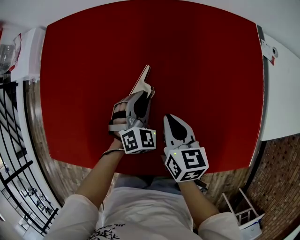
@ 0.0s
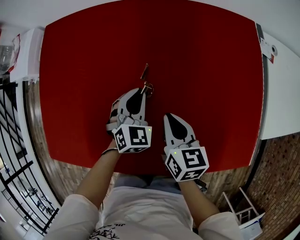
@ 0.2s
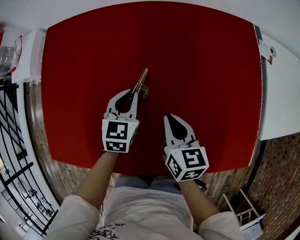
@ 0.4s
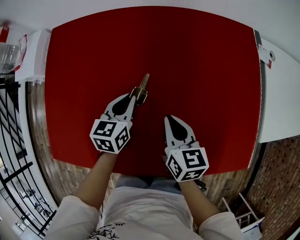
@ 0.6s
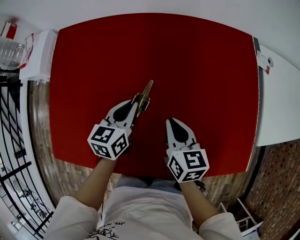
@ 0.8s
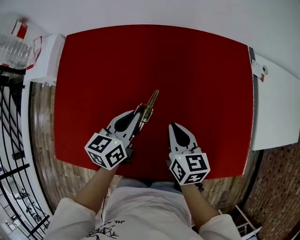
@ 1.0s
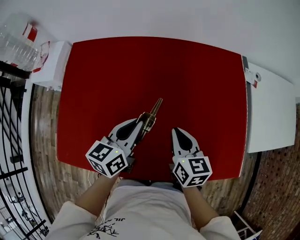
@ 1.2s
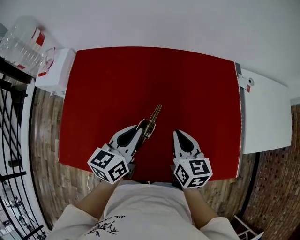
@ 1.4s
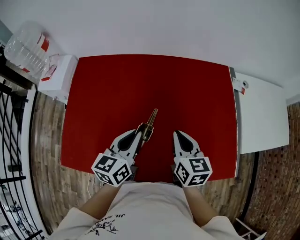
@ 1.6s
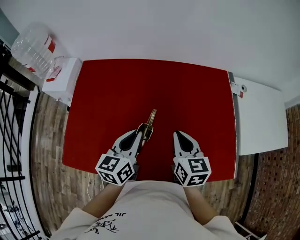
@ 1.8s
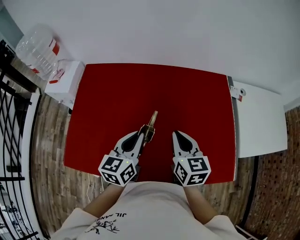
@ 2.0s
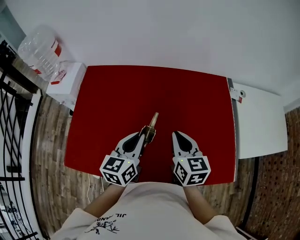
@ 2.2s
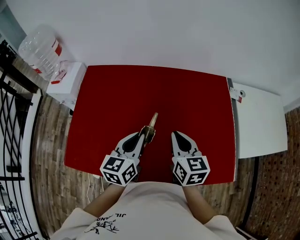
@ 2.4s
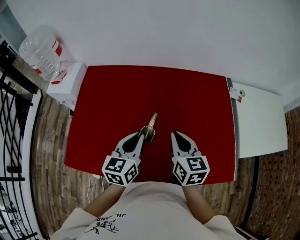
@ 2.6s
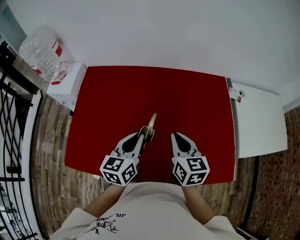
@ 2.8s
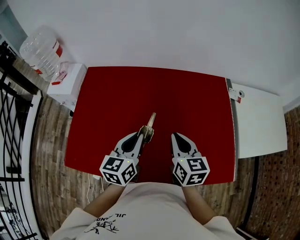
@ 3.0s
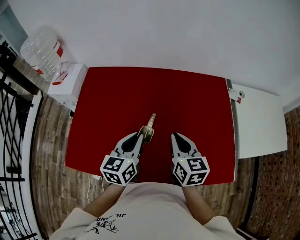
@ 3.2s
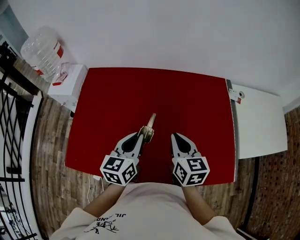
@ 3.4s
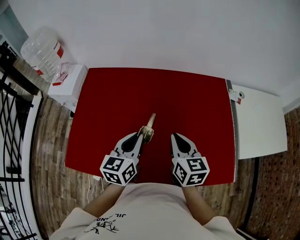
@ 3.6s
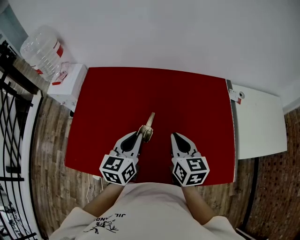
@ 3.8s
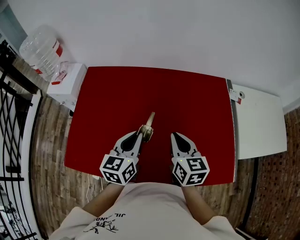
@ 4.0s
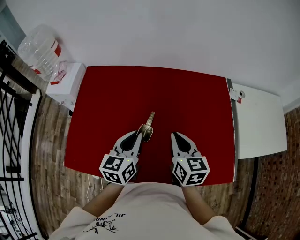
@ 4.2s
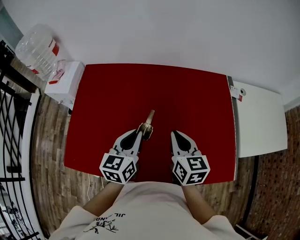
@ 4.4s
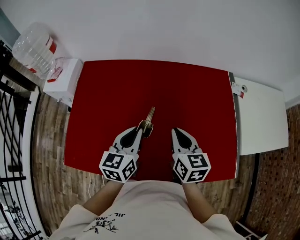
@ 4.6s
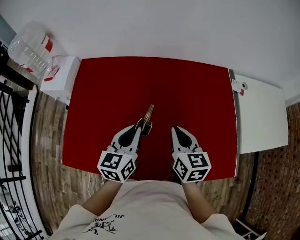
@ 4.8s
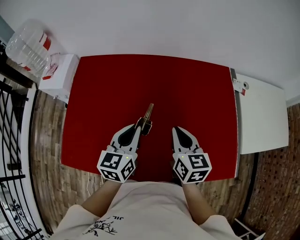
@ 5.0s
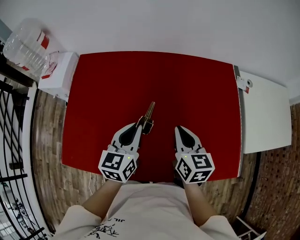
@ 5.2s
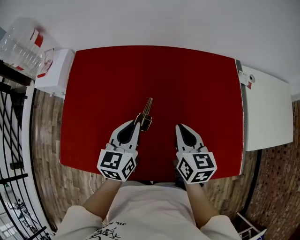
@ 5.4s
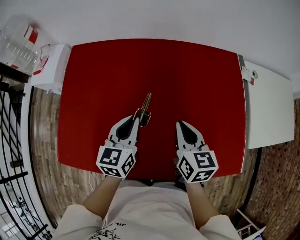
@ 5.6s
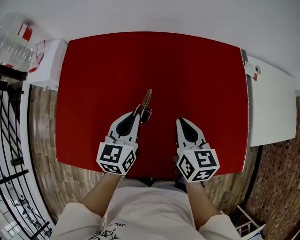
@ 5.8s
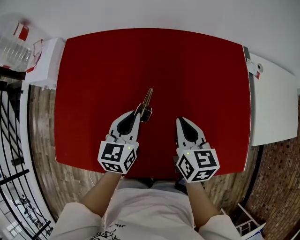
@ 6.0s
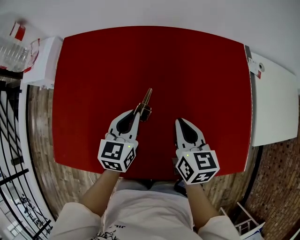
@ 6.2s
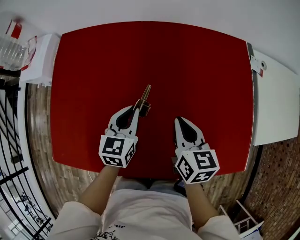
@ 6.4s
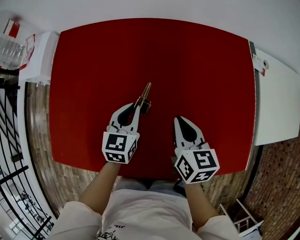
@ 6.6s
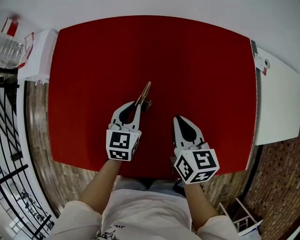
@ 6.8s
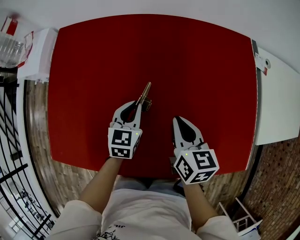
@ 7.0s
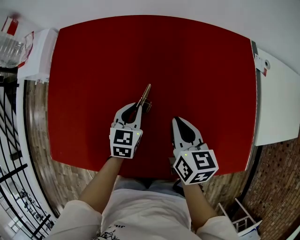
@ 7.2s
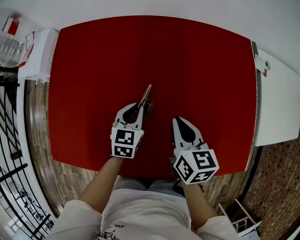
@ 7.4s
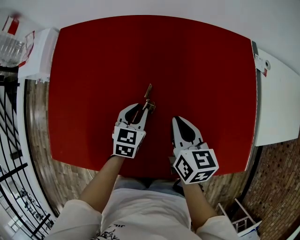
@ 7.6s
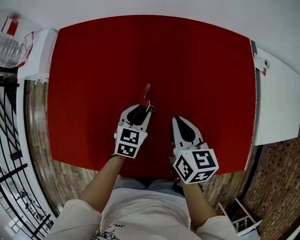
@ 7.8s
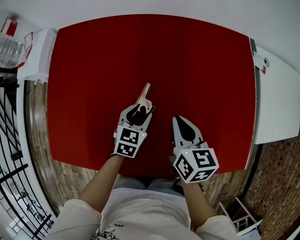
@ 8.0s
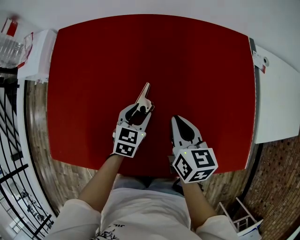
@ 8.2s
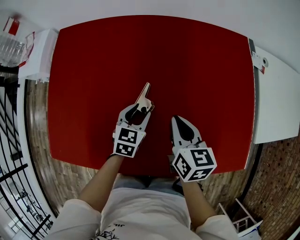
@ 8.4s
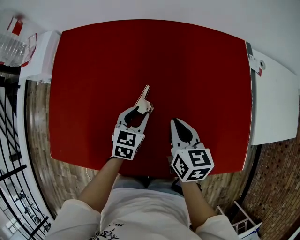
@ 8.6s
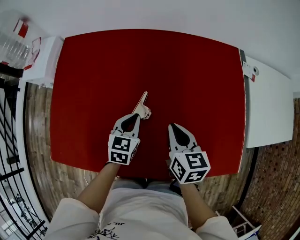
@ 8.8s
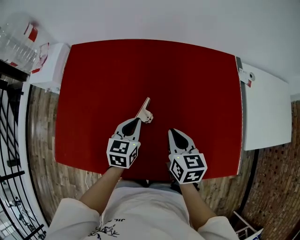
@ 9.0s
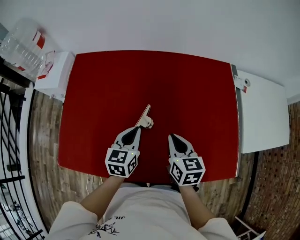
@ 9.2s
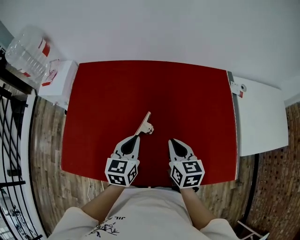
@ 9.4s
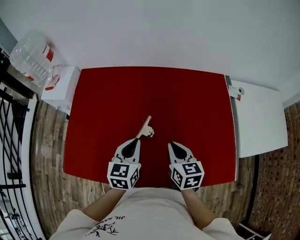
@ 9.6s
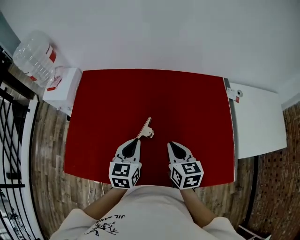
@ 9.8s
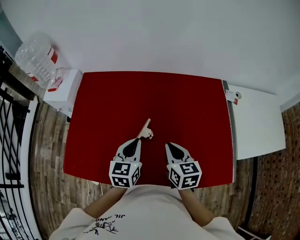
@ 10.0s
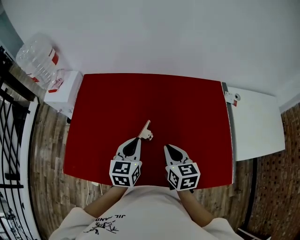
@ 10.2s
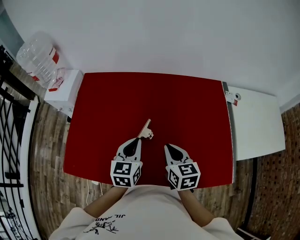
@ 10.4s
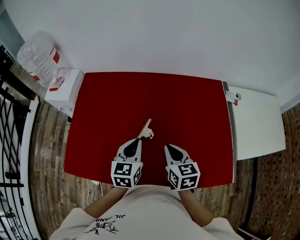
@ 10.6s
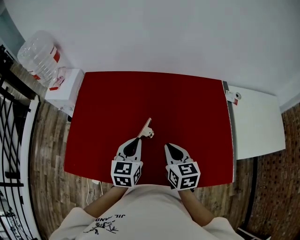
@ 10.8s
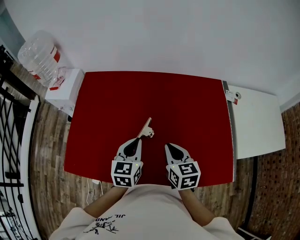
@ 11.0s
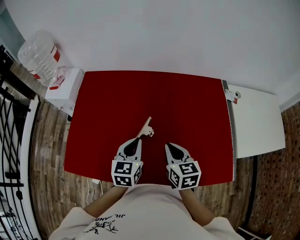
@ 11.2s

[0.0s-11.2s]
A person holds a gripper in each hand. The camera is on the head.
0.0s to 1.6s: The two grippers go approximately 20 cm upward. The left gripper rotates around the line of its fingers by some 60 degrees, counterclockwise from behind.
1.6s to 3.2s: The right gripper moves some 5 cm.
3.2s to 4.8s: The grippers stay close to where they were, moving slightly.
4.8s to 6.4s: The left gripper moves downward and forward, roughly 15 cm, while the right gripper is displaced downward by some 10 cm.
6.4s to 8.0s: The left gripper heads downward, covering some 10 cm, and opens its fingers.
8.0s to 9.6s: The left gripper heads upward, covering roughly 20 cm, rotates about 20 degrees, and closes; the right gripper travels upward and backward by roughly 10 cm.
9.6s to 11.2s: The grippers move only a little.

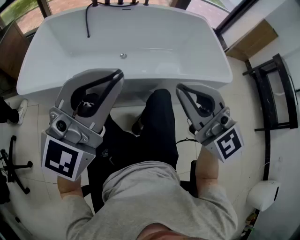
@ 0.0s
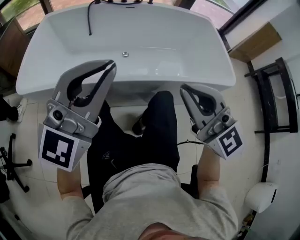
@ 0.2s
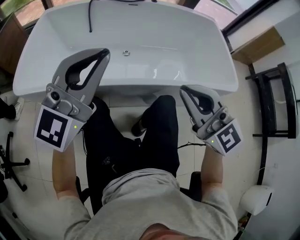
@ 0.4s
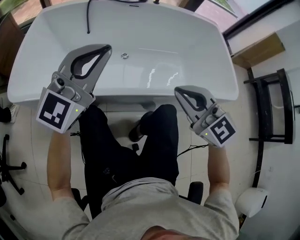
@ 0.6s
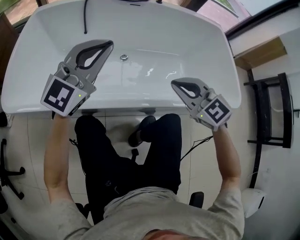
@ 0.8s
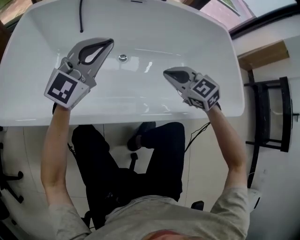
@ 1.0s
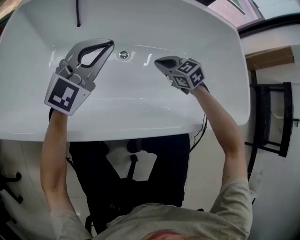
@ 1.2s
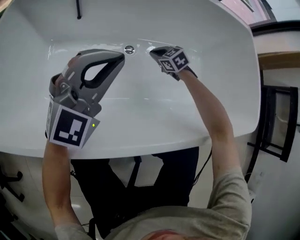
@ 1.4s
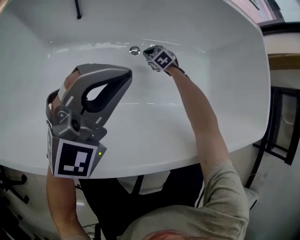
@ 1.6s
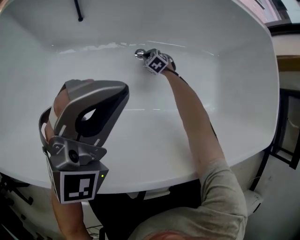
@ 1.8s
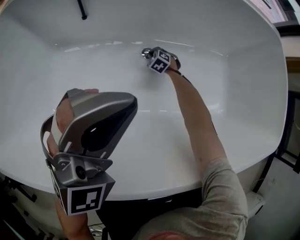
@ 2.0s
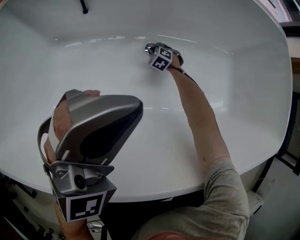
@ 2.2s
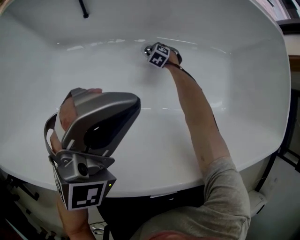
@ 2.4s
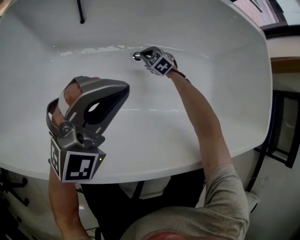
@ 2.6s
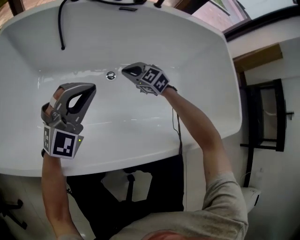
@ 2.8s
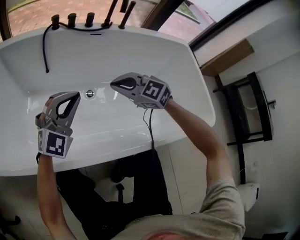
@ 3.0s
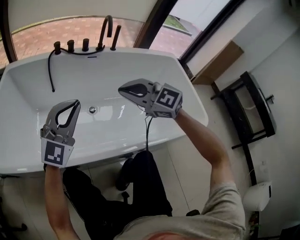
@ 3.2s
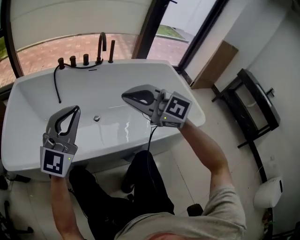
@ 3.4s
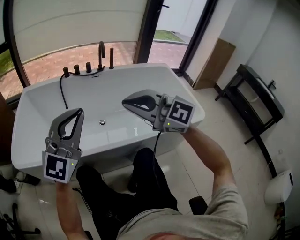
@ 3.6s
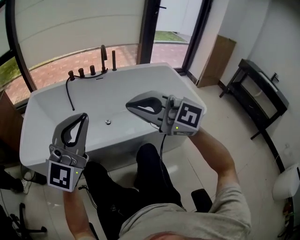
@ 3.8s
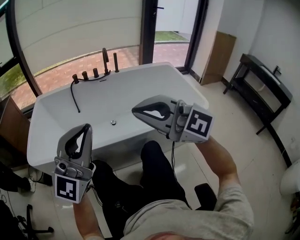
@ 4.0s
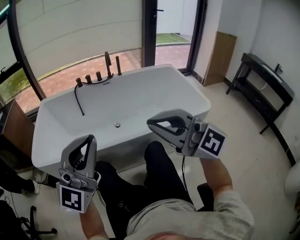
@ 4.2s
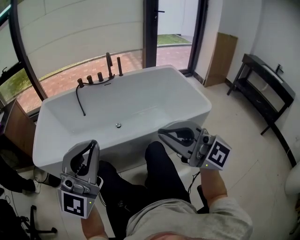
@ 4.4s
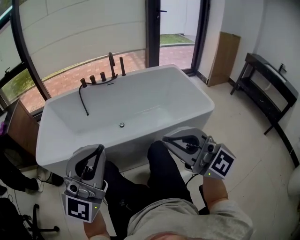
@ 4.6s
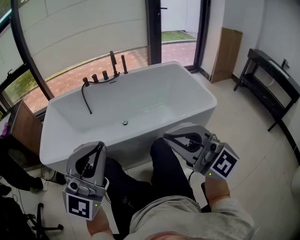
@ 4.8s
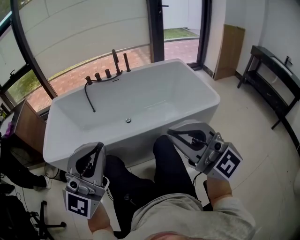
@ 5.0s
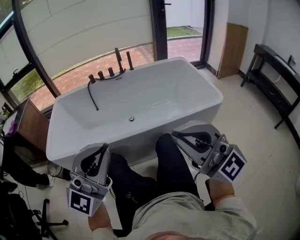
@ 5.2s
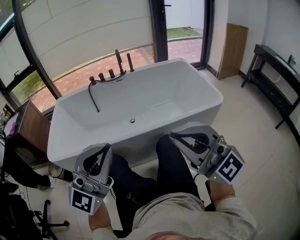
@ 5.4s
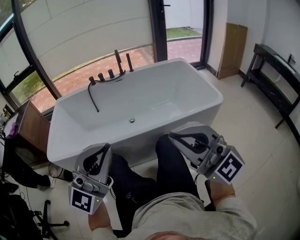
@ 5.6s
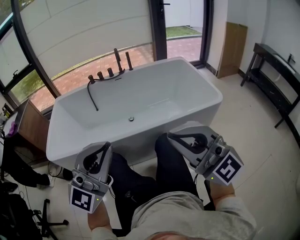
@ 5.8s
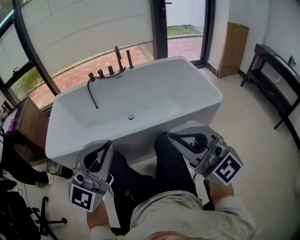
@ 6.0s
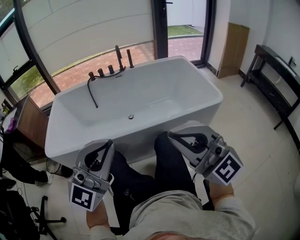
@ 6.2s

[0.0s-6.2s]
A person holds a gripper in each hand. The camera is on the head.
0.0s to 1.6s: The pair of grippers is taken forward, roughly 50 cm. The right gripper heads downward, covering some 70 cm, and tips its fingers downward by roughly 70 degrees. Meanwhile the left gripper goes approximately 30 cm downward, and changes its angle by roughly 20 degrees.
1.6s to 3.2s: The right gripper moves upward and backward, roughly 60 cm, and angles its fingers upward, by some 40 degrees. The left gripper shifts some 15 cm upward and backward.
3.2s to 4.6s: Both grippers move backward and upward, about 50 cm. The left gripper changes its angle by some 20 degrees; the right gripper angles its fingers upward, by some 40 degrees.
4.6s to 6.2s: The grippers stay close to where they were, moving slightly.

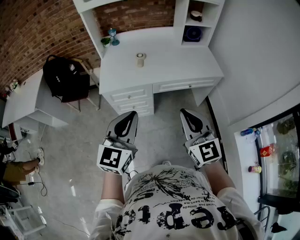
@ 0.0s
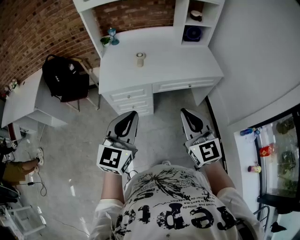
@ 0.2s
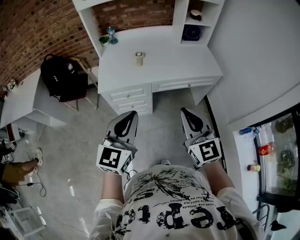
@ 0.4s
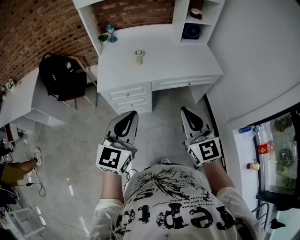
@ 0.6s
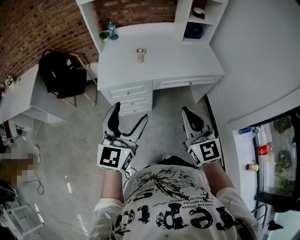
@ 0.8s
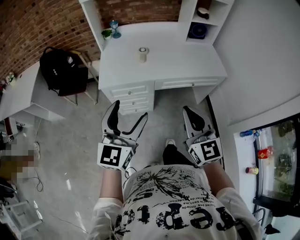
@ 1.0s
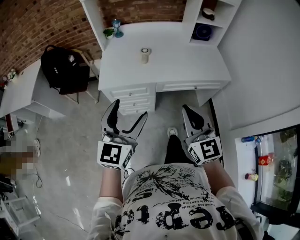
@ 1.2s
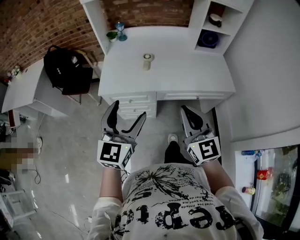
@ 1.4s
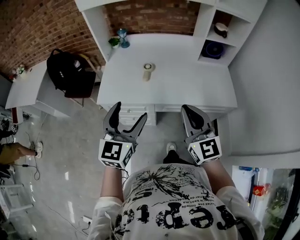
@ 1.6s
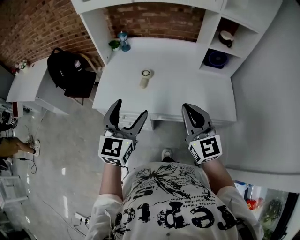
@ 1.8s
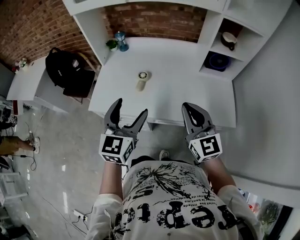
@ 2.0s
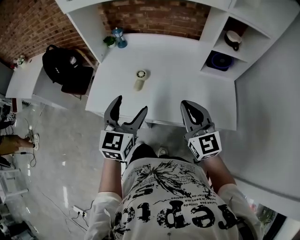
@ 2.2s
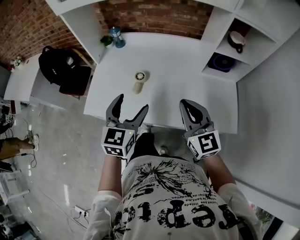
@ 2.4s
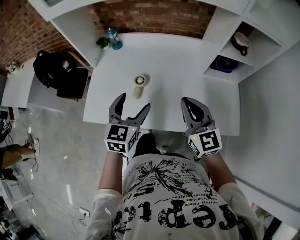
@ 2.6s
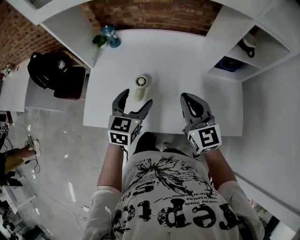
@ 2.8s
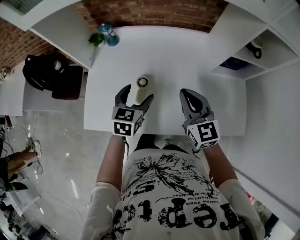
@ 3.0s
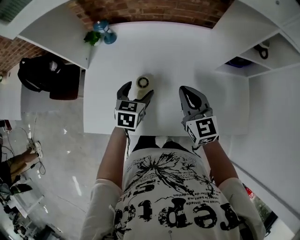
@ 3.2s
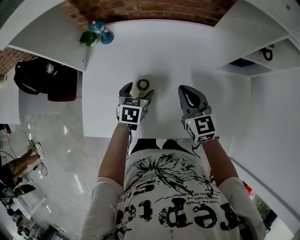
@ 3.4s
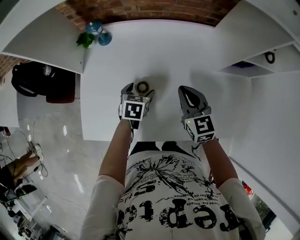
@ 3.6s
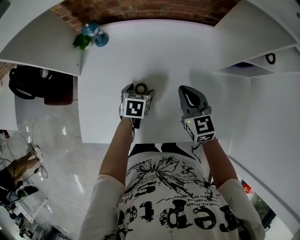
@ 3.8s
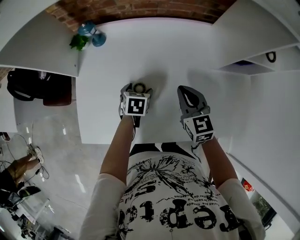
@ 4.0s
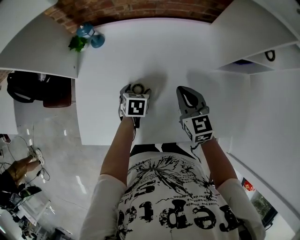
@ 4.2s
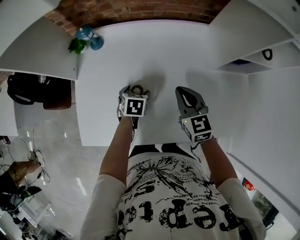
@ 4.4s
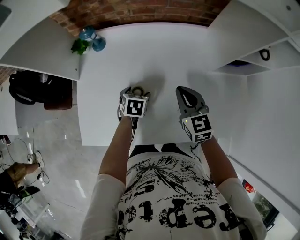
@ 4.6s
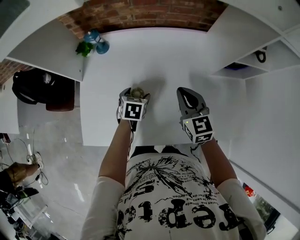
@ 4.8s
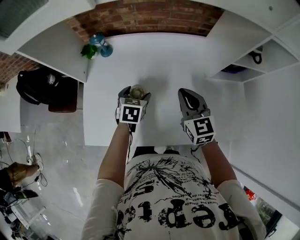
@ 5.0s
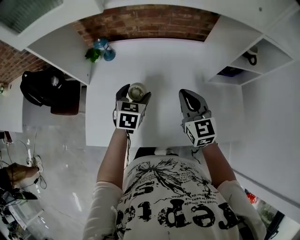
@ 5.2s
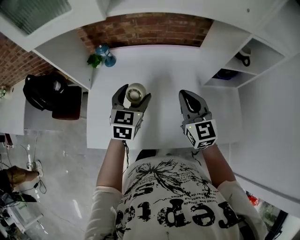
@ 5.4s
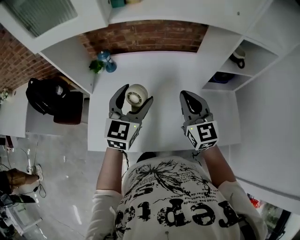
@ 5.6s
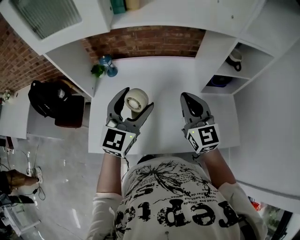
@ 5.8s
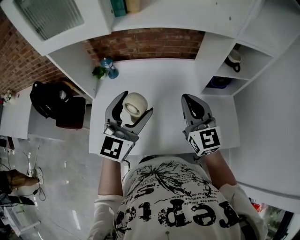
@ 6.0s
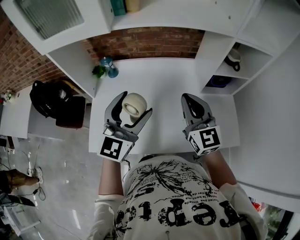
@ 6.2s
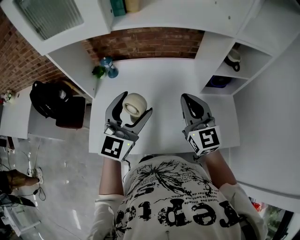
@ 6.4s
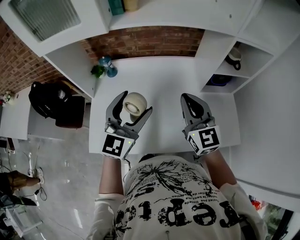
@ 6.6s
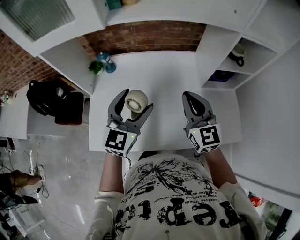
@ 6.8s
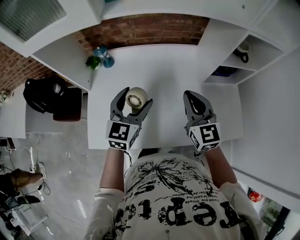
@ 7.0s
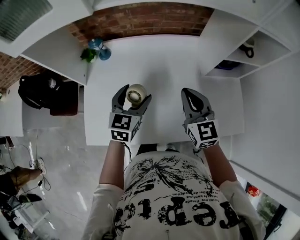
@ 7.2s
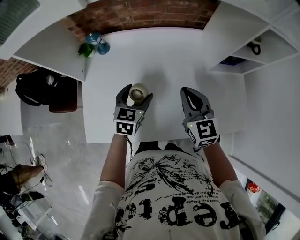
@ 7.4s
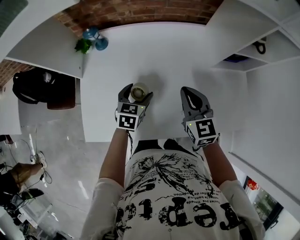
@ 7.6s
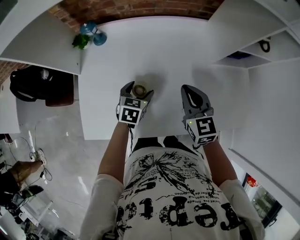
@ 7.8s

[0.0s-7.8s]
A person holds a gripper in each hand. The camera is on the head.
0.0s to 1.6s: The two grippers go about 25 cm forward. The left gripper opens its fingers.
1.6s to 3.2s: Both grippers are carried forward, roughly 40 cm. The left gripper is displaced downward by some 25 cm, and angles its fingers downward, by approximately 30 degrees.
3.2s to 4.6s: The left gripper moves downward, about 15 cm, and turns by approximately 20 degrees. Meanwhile the right gripper moves downward and forward, some 10 cm.
4.6s to 6.2s: The right gripper goes approximately 25 cm upward and backward, and rotates roughly 20 degrees; the left gripper goes roughly 40 cm upward, and tips its fingers upward by some 70 degrees.
6.2s to 7.8s: The right gripper travels downward by roughly 20 cm, and turns by approximately 20 degrees. The left gripper is displaced downward by roughly 35 cm, and points its fingers approximately 50 degrees further downward.
